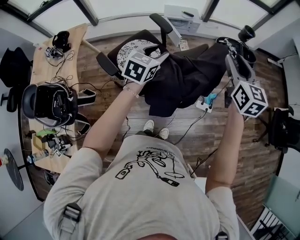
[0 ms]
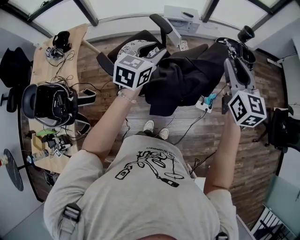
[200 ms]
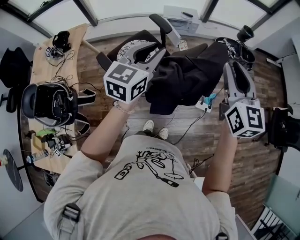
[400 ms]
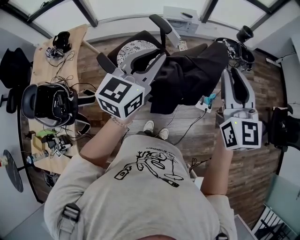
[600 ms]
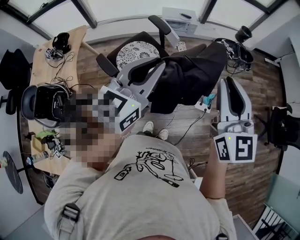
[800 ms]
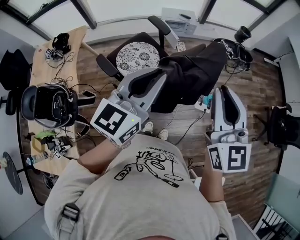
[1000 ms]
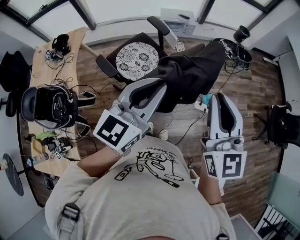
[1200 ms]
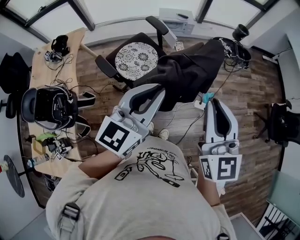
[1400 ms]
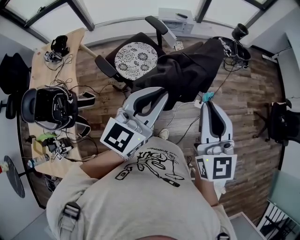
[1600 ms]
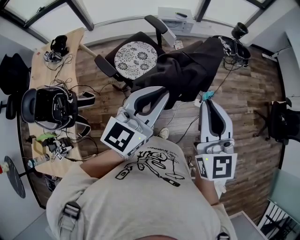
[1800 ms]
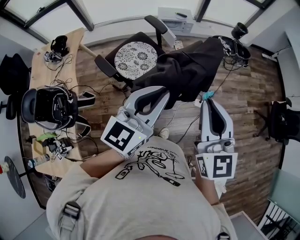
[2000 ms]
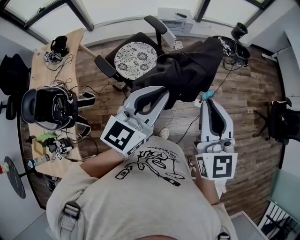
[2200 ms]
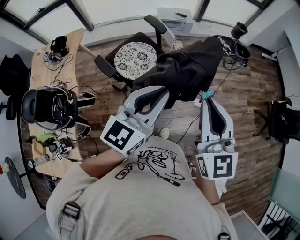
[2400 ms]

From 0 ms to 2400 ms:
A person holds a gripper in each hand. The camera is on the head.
From 0 ms to 1200 ms: The left gripper moves backward and upward, roughly 25 cm, rotates about 30 degrees, and closes; the right gripper travels backward by roughly 20 cm, and closes its fingers.
From 1200 ms to 2400 ms: The grippers make only small movements.

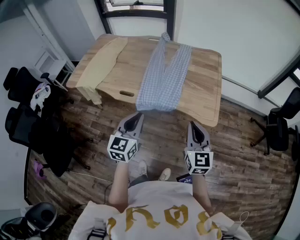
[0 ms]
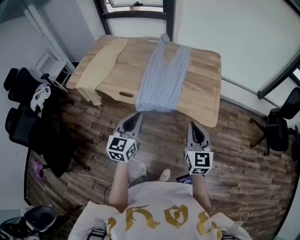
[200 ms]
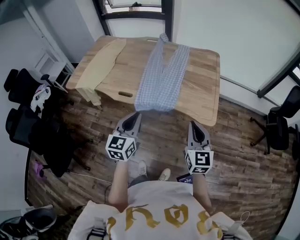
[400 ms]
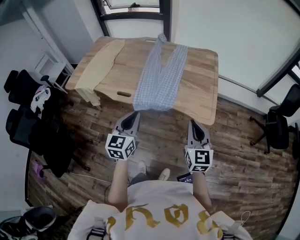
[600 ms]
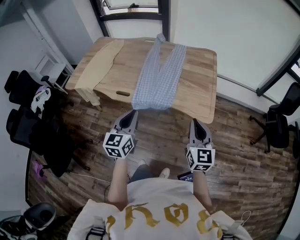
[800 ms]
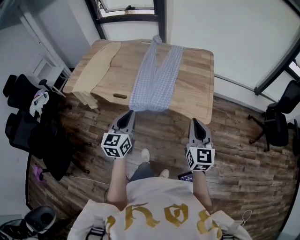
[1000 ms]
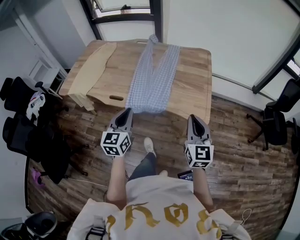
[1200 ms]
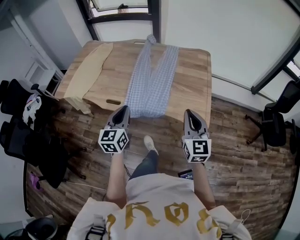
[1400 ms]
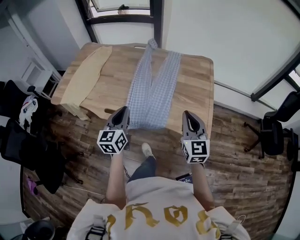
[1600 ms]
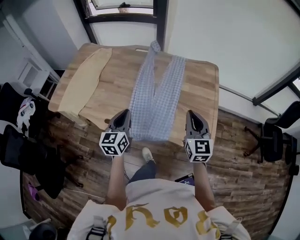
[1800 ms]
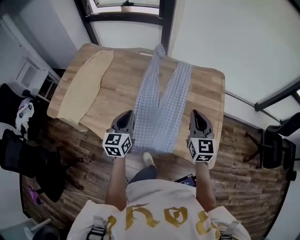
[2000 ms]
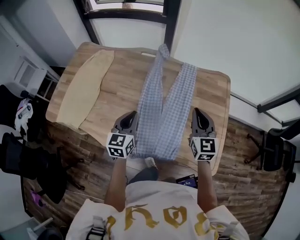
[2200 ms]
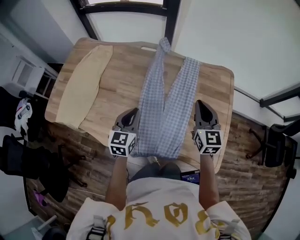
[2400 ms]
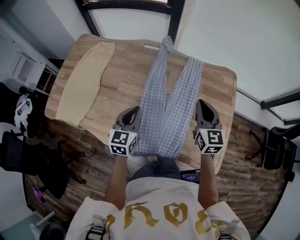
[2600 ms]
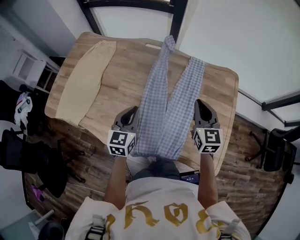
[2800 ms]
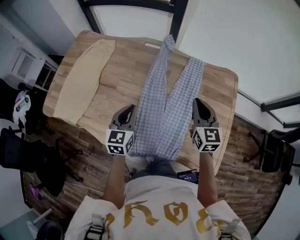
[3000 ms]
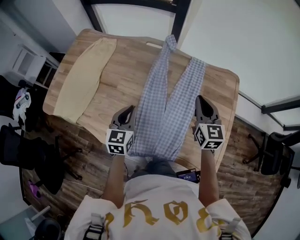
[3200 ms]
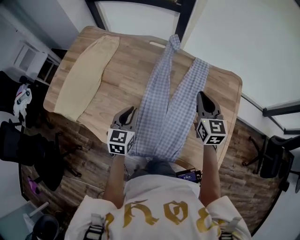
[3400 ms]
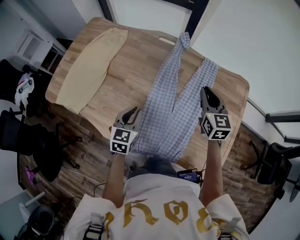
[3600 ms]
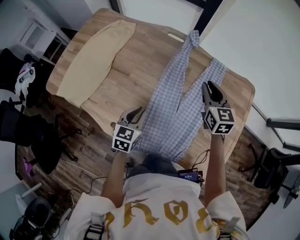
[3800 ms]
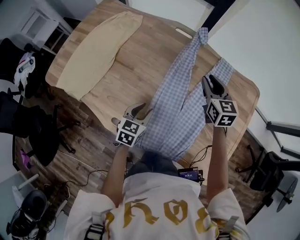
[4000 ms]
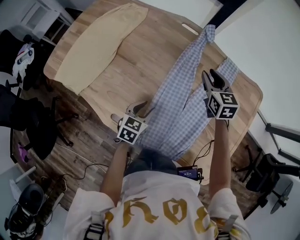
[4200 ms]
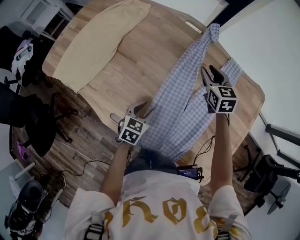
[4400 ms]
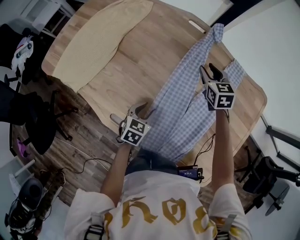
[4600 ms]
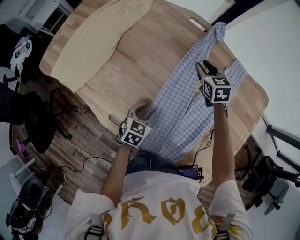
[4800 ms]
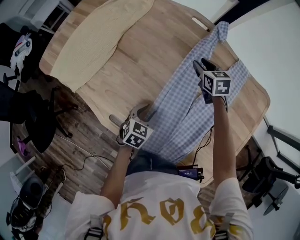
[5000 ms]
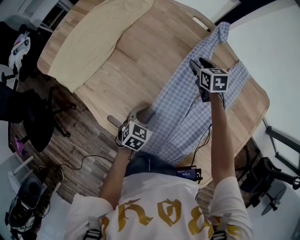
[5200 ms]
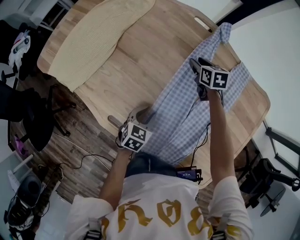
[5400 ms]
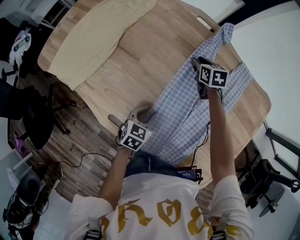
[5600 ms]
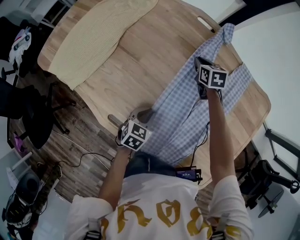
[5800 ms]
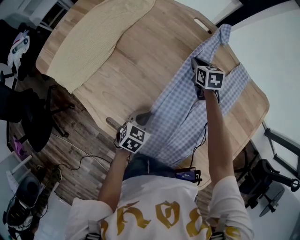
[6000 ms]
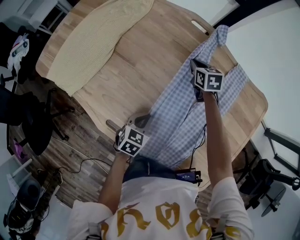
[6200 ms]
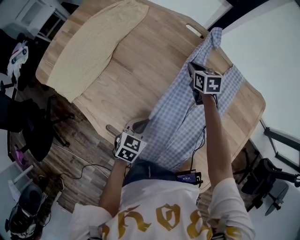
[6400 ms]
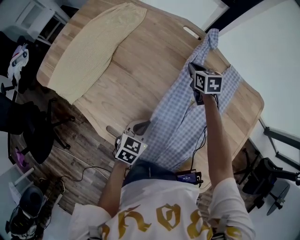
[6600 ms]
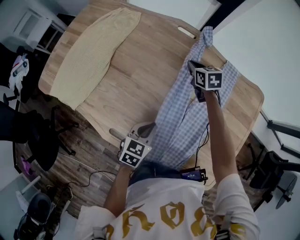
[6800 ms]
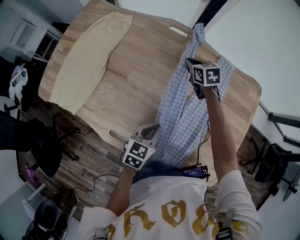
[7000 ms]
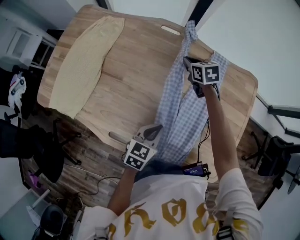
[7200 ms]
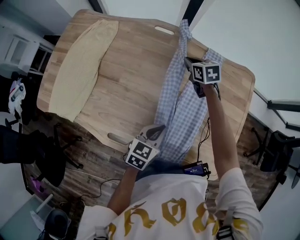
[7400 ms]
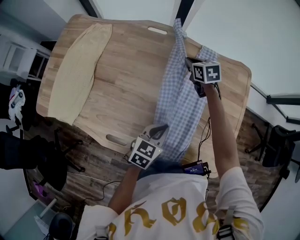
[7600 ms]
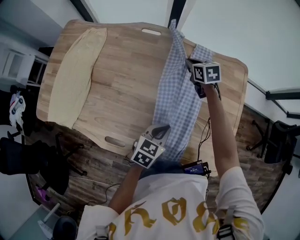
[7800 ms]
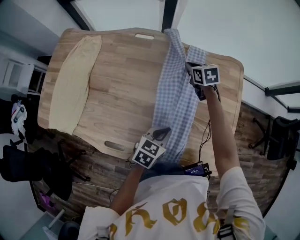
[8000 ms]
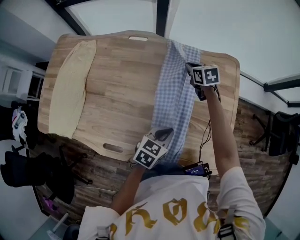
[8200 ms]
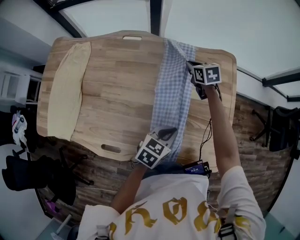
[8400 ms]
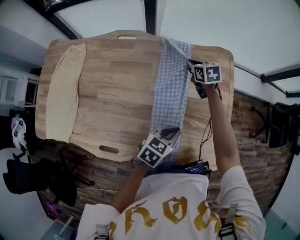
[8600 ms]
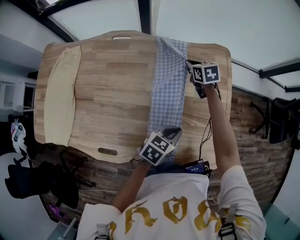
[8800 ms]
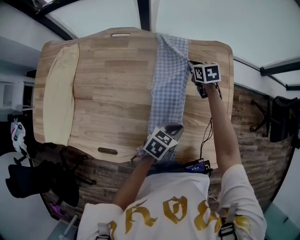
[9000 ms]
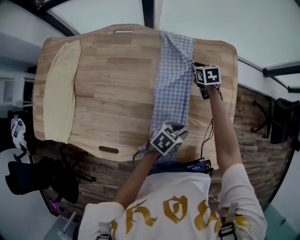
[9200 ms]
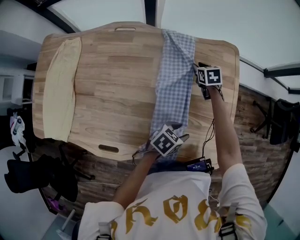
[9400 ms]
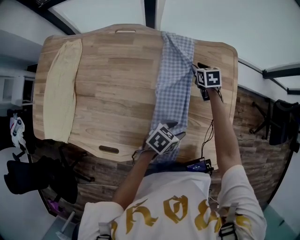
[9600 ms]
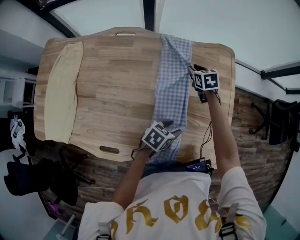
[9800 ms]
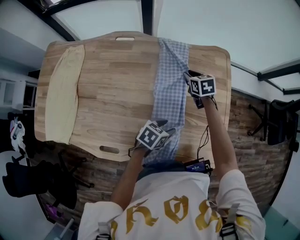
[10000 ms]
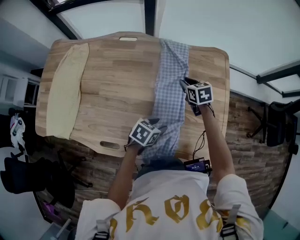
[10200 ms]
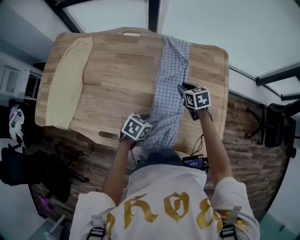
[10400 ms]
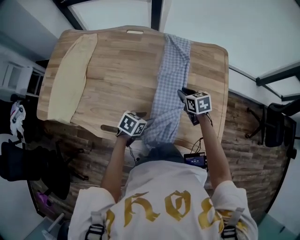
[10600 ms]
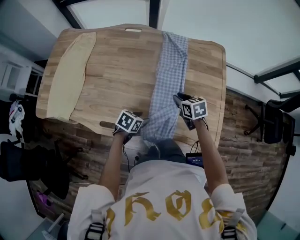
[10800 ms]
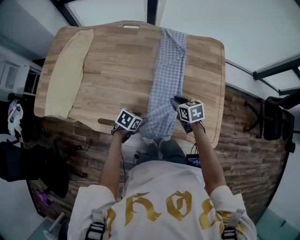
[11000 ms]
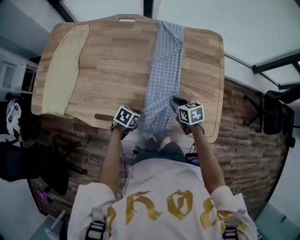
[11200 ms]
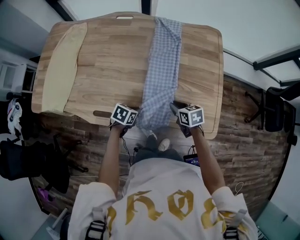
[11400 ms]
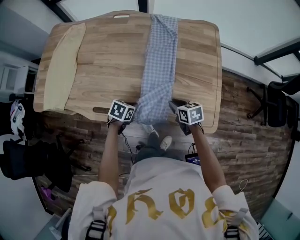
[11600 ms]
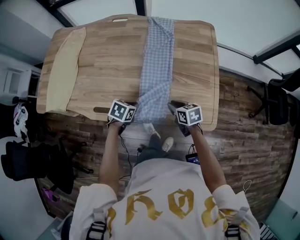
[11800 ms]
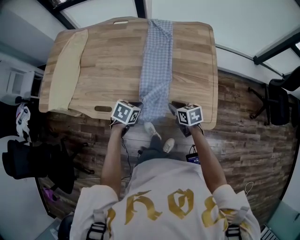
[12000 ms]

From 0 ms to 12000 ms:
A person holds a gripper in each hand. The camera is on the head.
From 0 ms to 1600 ms: Both grippers move forward, roughly 15 cm.
From 1600 ms to 3000 ms: Both grippers move forward, approximately 30 cm.
From 3000 ms to 4400 ms: The right gripper heads forward, downward and to the left, covering approximately 25 cm, changes its angle by approximately 30 degrees, and opens its fingers, while the left gripper moves downward, some 20 cm, rotates approximately 30 degrees, and opens its fingers.
From 4400 ms to 6000 ms: The left gripper closes up, while the right gripper shifts some 15 cm downward, forward and to the left, and closes.
From 6000 ms to 7600 ms: The right gripper shifts about 15 cm to the right and upward. The left gripper travels upward and to the right by some 20 cm, and swivels about 20 degrees.
From 7600 ms to 9000 ms: The two grippers go about 15 cm to the right. The left gripper changes its angle by approximately 20 degrees.
From 9000 ms to 10400 ms: The left gripper travels backward and to the left by some 15 cm, and opens up, while the right gripper travels backward by some 20 cm.
From 10400 ms to 12000 ms: The right gripper goes some 25 cm backward, while the left gripper travels backward by about 10 cm, and closes up.

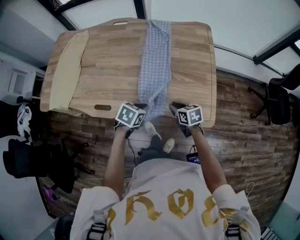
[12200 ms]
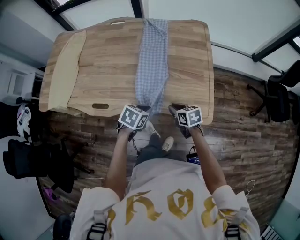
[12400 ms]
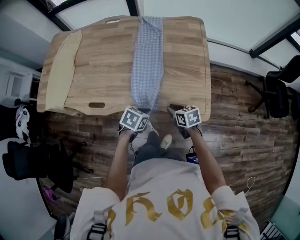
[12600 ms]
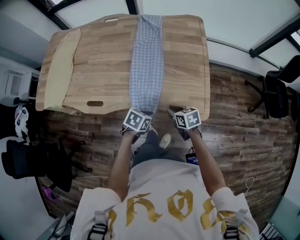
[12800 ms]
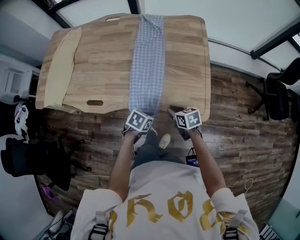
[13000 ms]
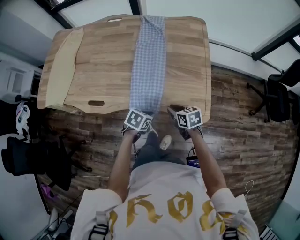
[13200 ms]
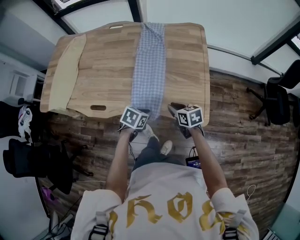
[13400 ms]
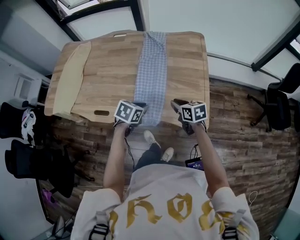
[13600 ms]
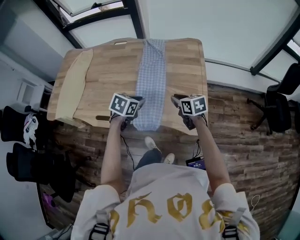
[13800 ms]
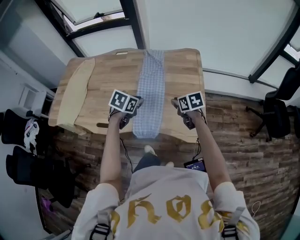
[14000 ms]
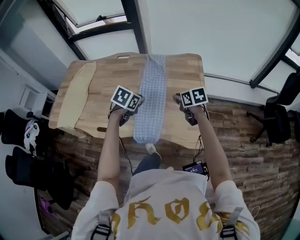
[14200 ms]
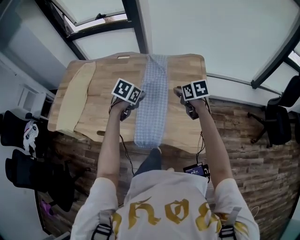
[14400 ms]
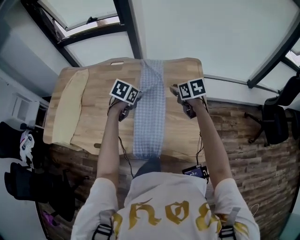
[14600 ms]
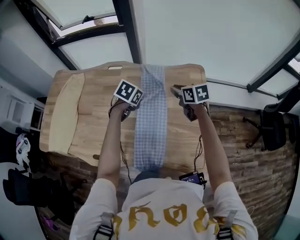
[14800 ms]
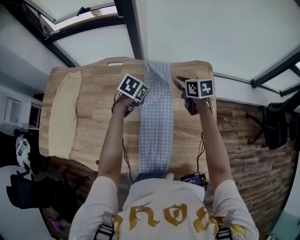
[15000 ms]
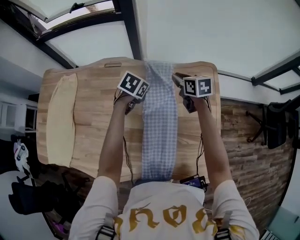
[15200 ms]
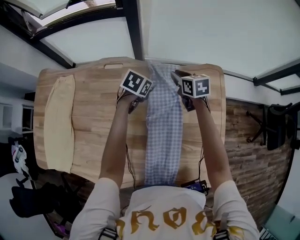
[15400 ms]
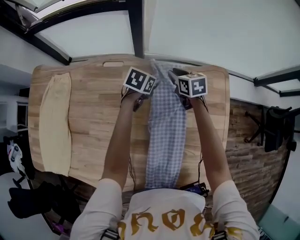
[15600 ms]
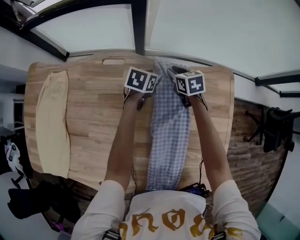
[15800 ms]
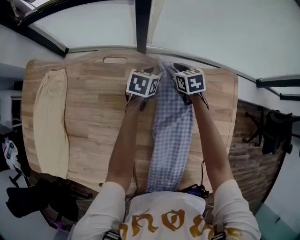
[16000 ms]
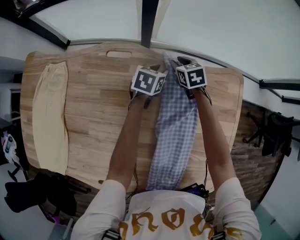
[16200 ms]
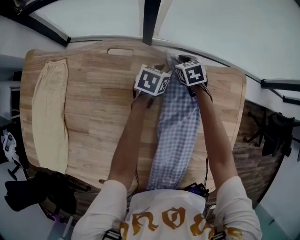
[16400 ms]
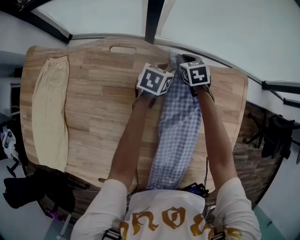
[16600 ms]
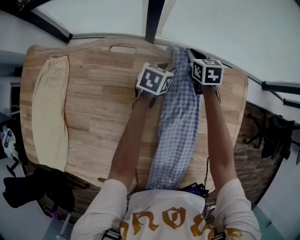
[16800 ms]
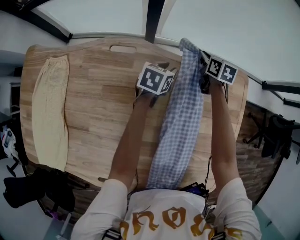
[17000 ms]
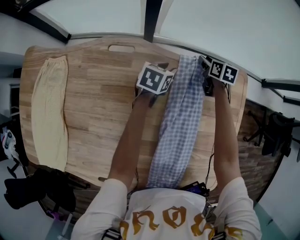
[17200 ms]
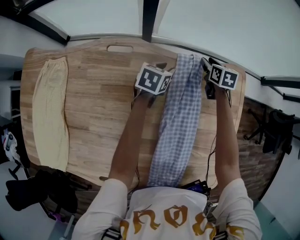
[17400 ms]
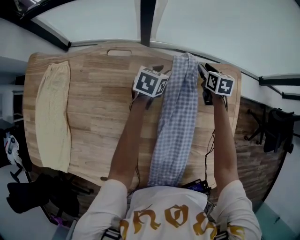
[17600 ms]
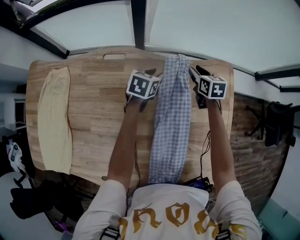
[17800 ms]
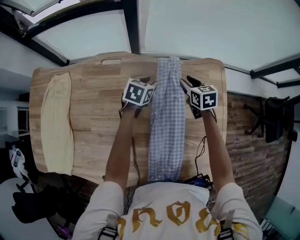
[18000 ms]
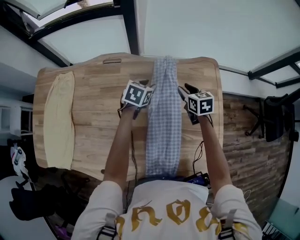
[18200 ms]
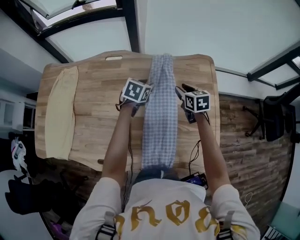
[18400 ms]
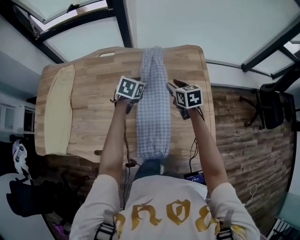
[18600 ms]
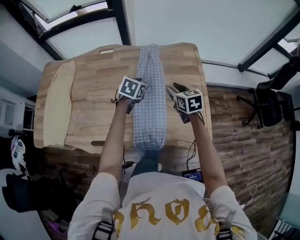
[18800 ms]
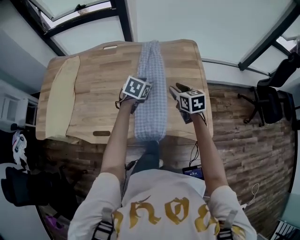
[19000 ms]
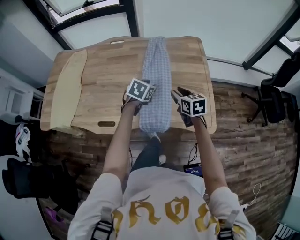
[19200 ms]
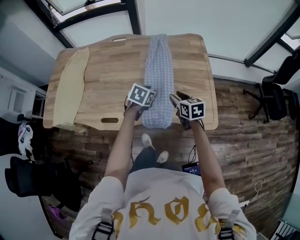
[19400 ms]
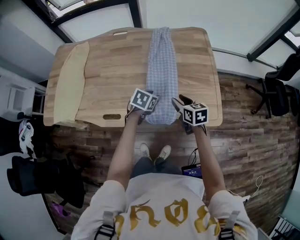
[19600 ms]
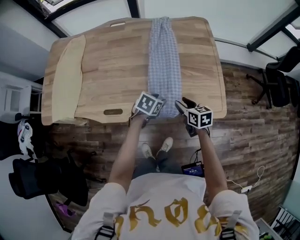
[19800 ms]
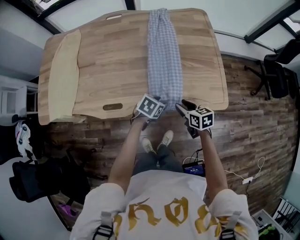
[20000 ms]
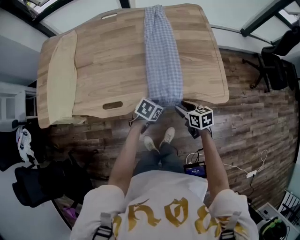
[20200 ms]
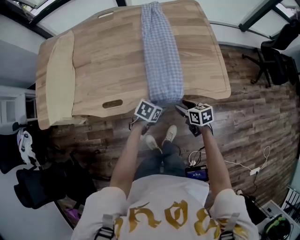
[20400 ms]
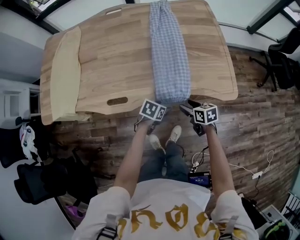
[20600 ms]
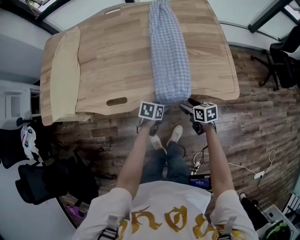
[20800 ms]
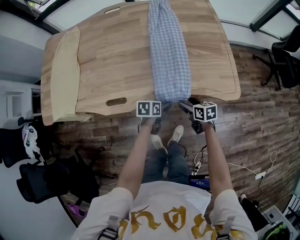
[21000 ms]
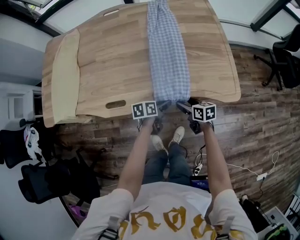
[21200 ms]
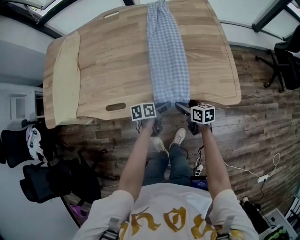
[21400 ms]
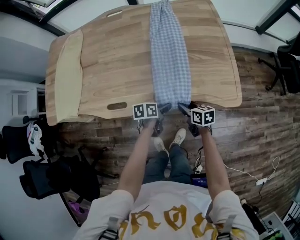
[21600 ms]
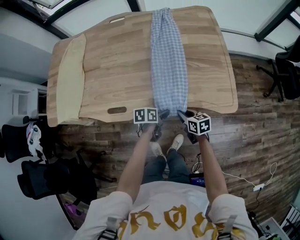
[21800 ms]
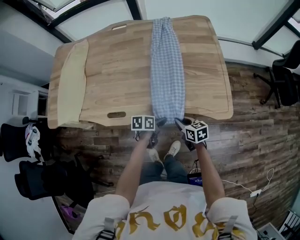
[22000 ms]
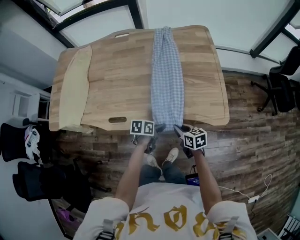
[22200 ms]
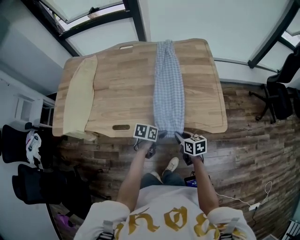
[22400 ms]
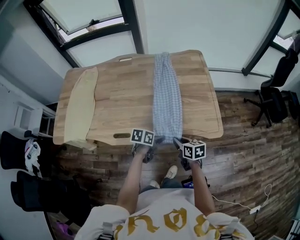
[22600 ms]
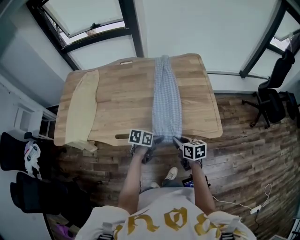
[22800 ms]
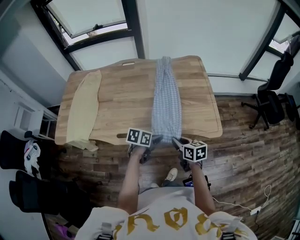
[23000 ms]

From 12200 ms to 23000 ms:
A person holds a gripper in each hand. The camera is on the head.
From 12200 ms to 13800 ms: The left gripper shifts about 10 cm upward and forward; the right gripper moves upward, forward and to the right, roughly 15 cm.
From 13800 ms to 15200 ms: The pair of grippers is taken forward, about 40 cm.
From 15200 ms to 16800 ms: The right gripper moves forward, downward and to the left, approximately 25 cm; the left gripper heads forward and downward, covering some 15 cm, turns by some 20 degrees, and opens.
From 16800 ms to 18400 ms: The right gripper travels backward and to the right by some 35 cm, and opens its fingers. The left gripper moves backward, upward and to the right, roughly 25 cm.
From 18400 ms to 20000 ms: Both grippers are carried backward, about 40 cm. The left gripper swivels some 20 degrees.
From 20000 ms to 21400 ms: The grippers both shift downward by about 10 cm. The left gripper rolls counterclockwise, seen from behind, by some 40 degrees.
From 21400 ms to 23000 ms: The grippers both shift upward by some 20 cm. The right gripper closes up; the left gripper swivels roughly 20 degrees, and closes up.
